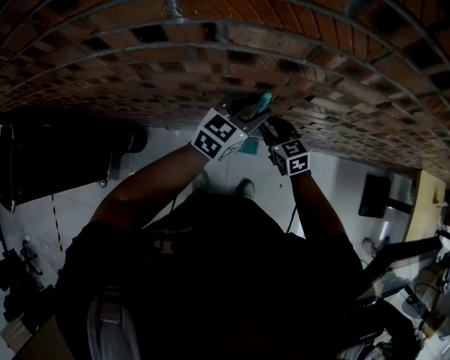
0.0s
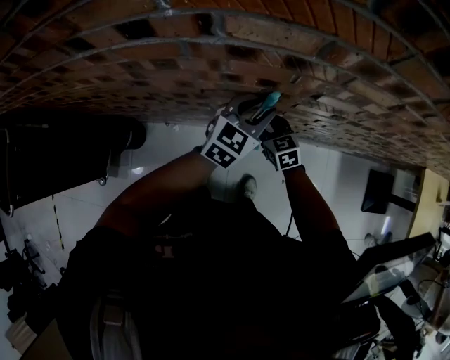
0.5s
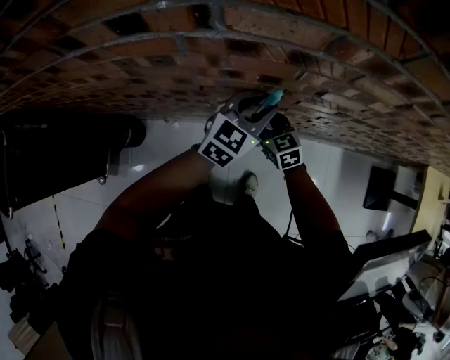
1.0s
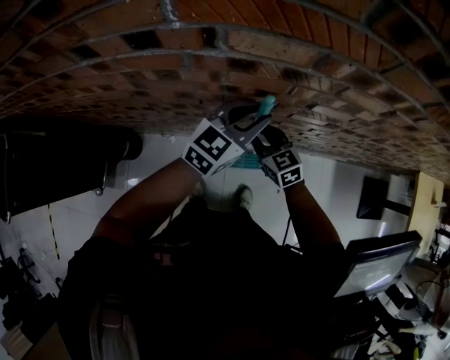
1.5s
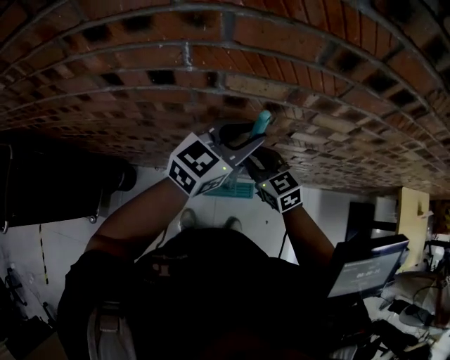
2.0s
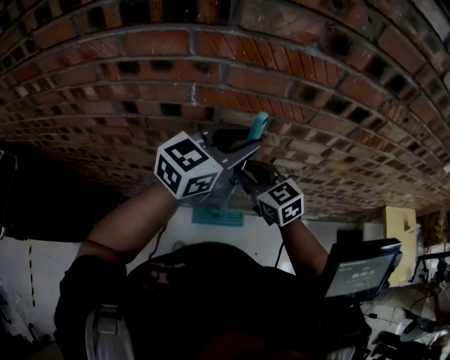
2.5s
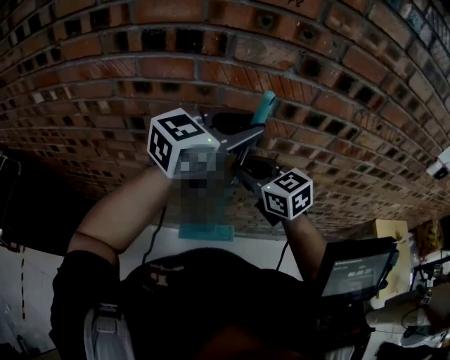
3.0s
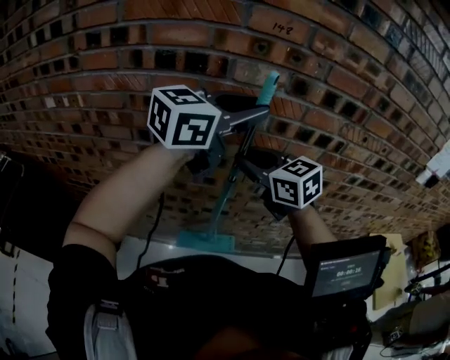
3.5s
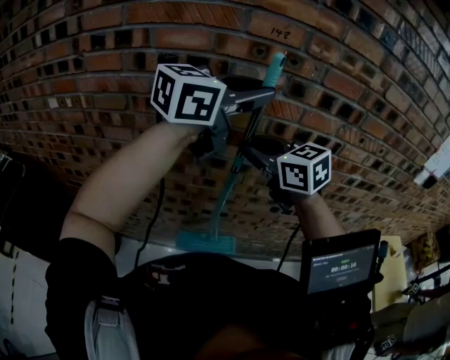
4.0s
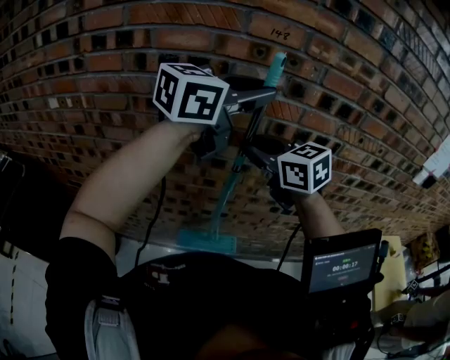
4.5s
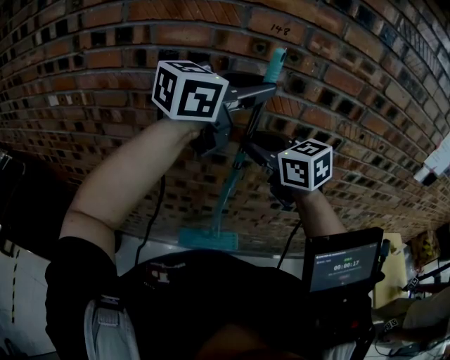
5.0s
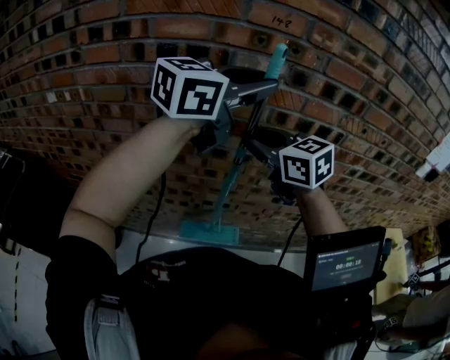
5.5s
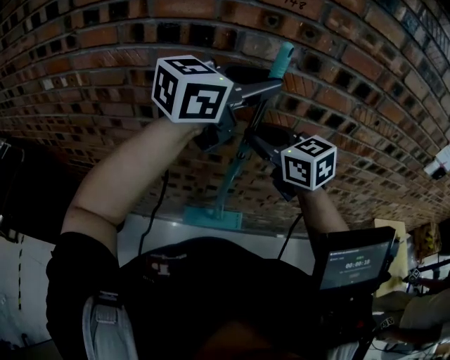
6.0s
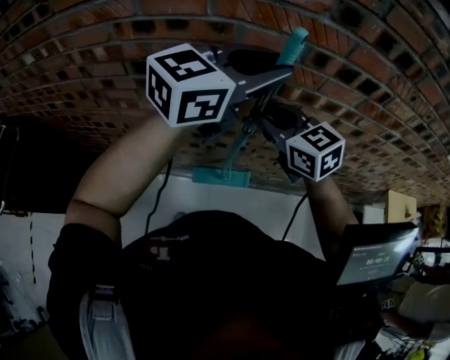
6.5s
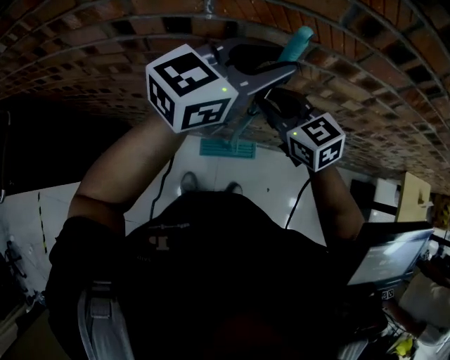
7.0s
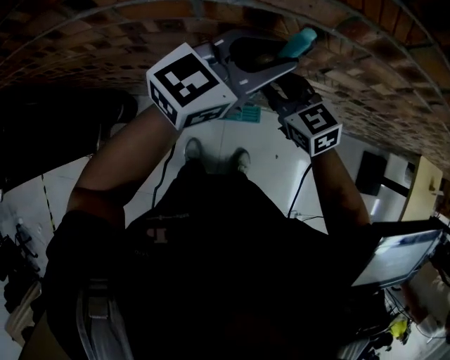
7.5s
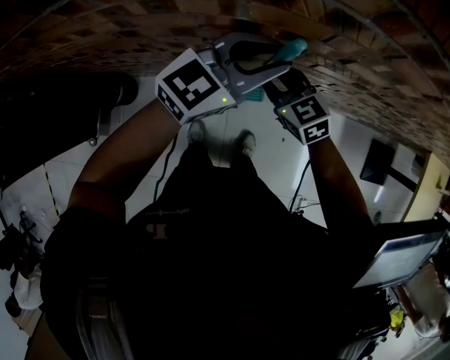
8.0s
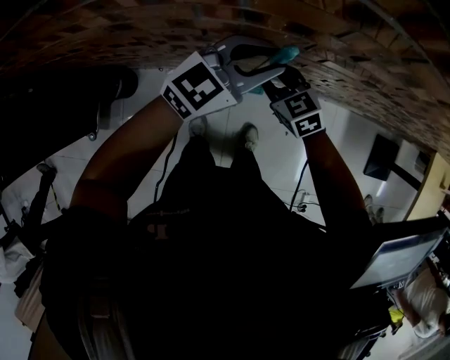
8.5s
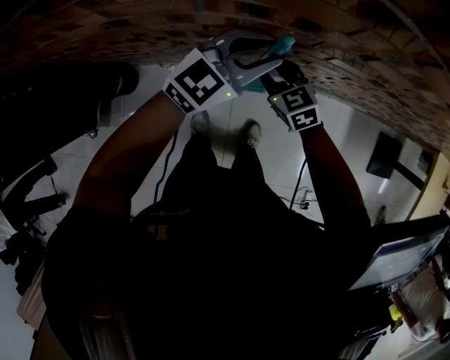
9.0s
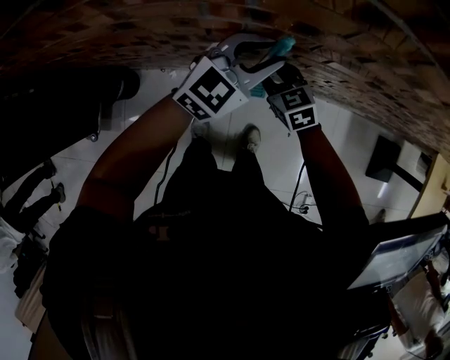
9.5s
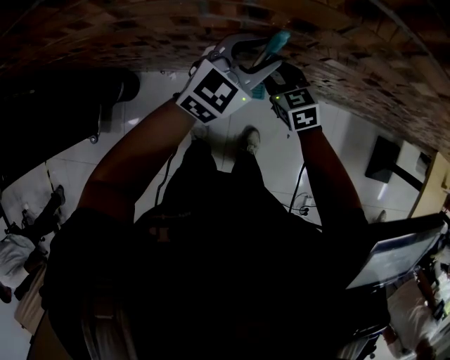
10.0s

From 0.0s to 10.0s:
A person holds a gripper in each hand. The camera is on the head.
From 0.0s to 2.0s: The two grippers go approximately 15 cm upward.
From 2.0s to 4.0s: Both grippers move upward, some 35 cm.
From 4.0s to 6.0s: There are only small adjustments of the grippers.
From 6.0s to 8.0s: The grippers both shift downward by roughly 40 cm.
From 8.0s to 10.0s: The grippers both shift downward by approximately 10 cm.

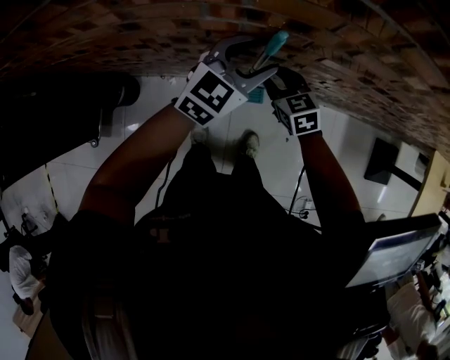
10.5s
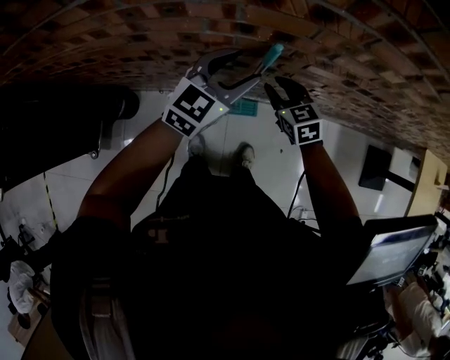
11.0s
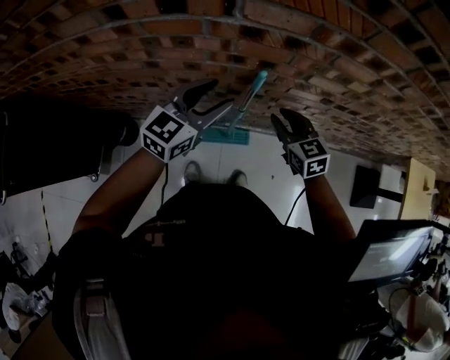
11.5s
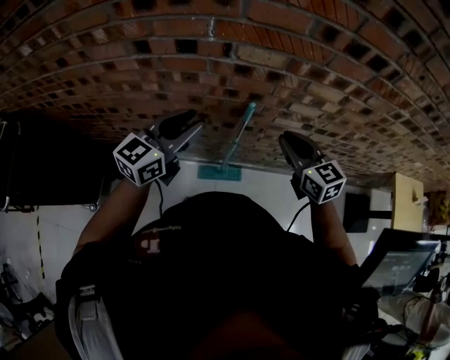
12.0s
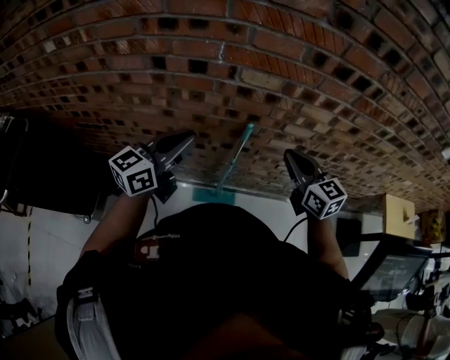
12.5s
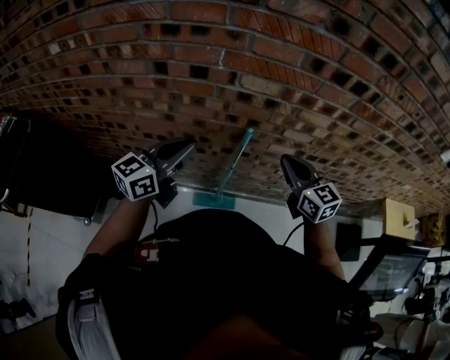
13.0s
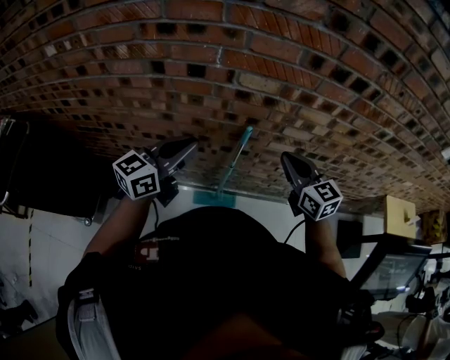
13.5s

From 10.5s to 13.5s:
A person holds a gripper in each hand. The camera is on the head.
From 10.5s to 12.0s: The left gripper shifts about 25 cm upward, to the left and backward, swivels about 20 degrees, and closes its fingers; the right gripper moves upward, about 25 cm.
From 12.0s to 13.5s: The left gripper closes up.

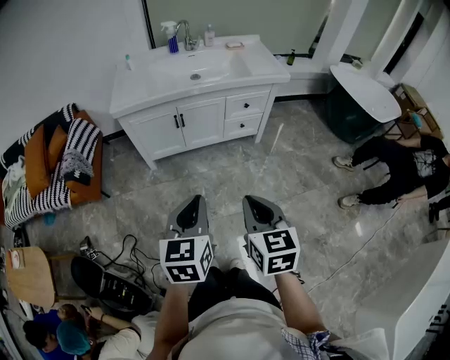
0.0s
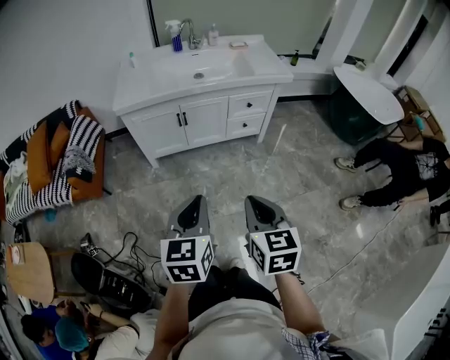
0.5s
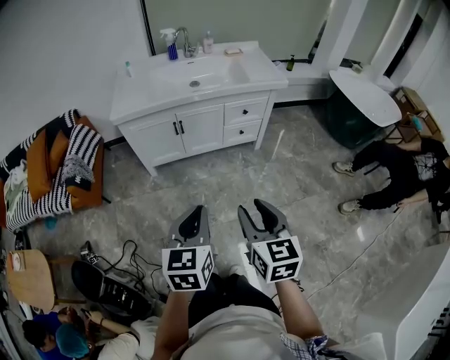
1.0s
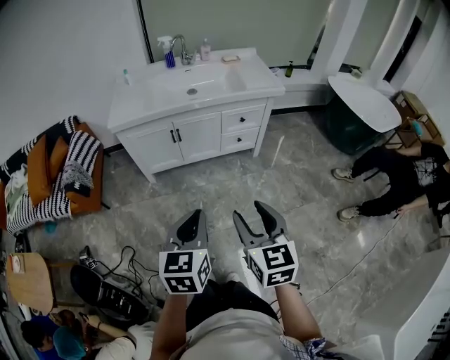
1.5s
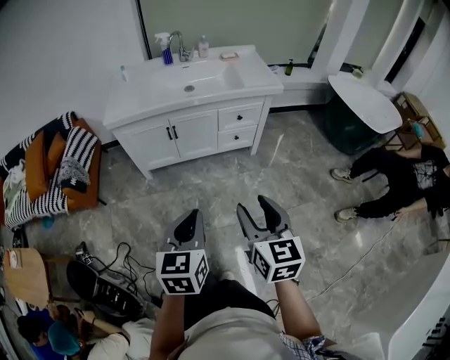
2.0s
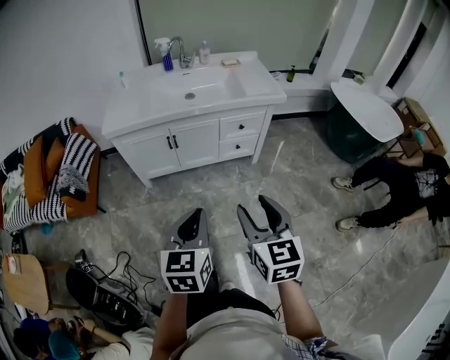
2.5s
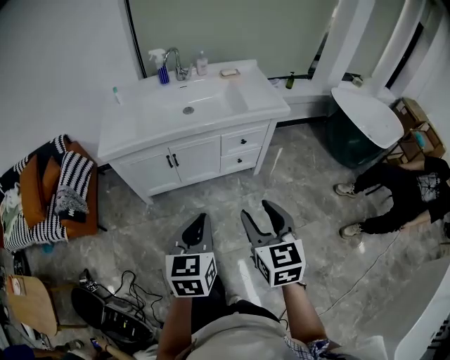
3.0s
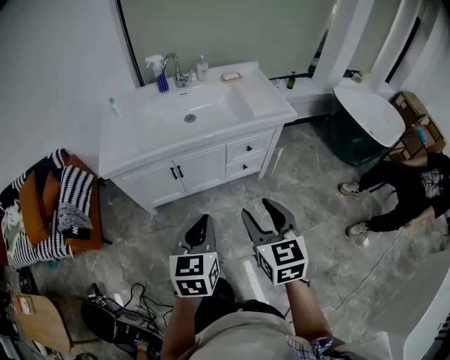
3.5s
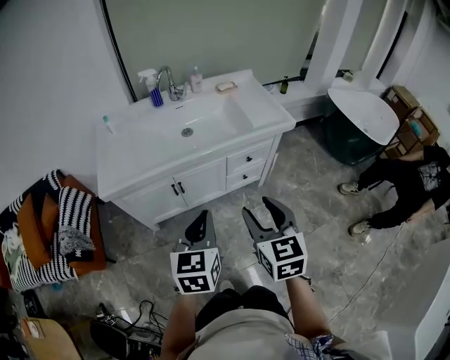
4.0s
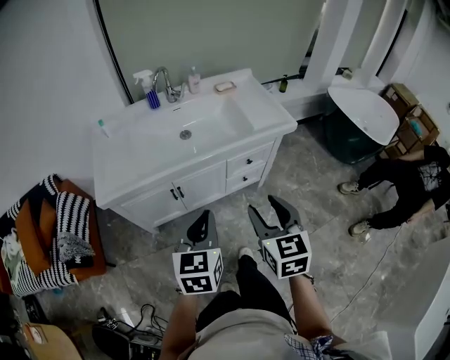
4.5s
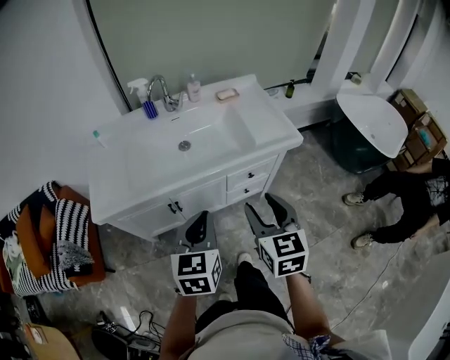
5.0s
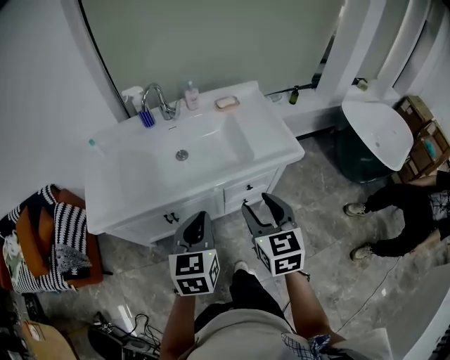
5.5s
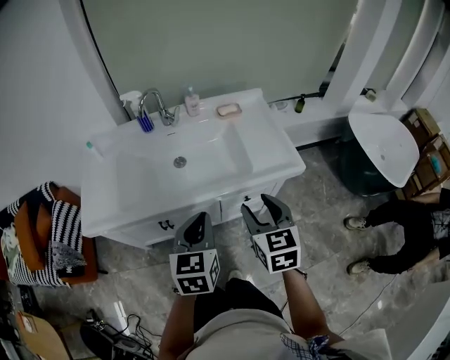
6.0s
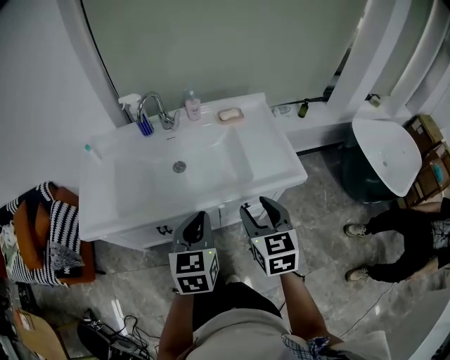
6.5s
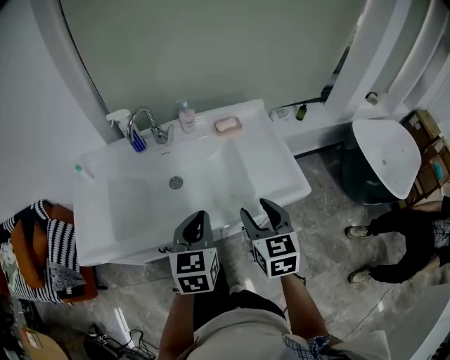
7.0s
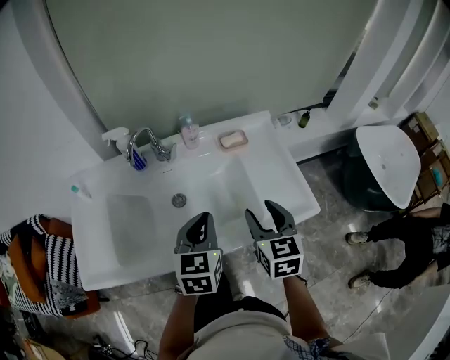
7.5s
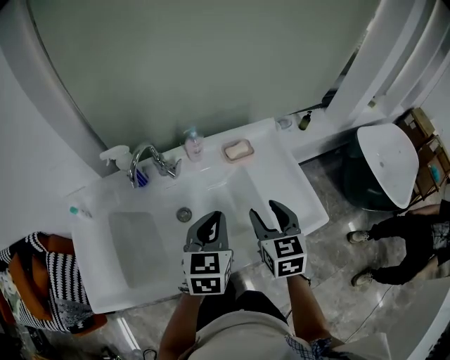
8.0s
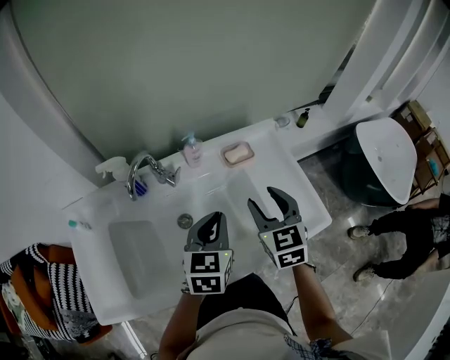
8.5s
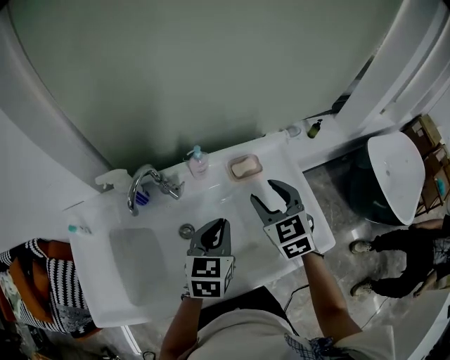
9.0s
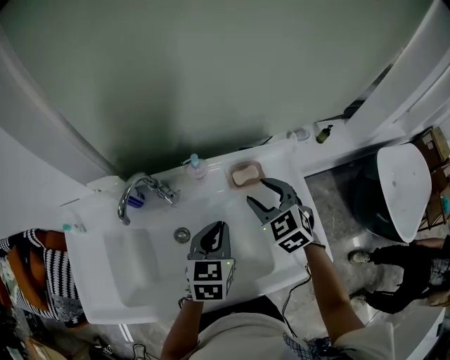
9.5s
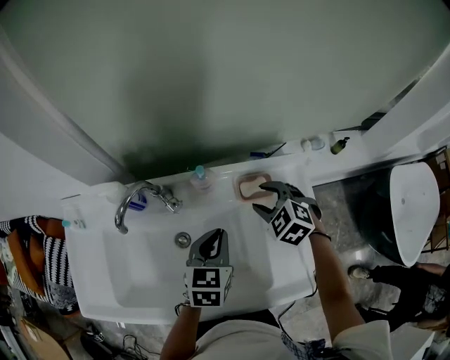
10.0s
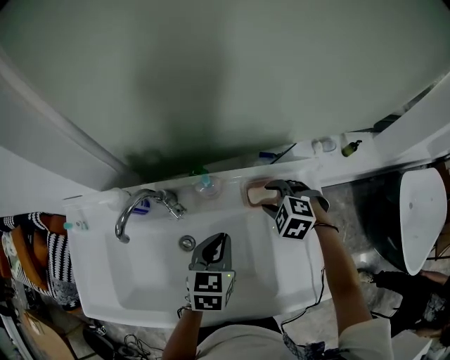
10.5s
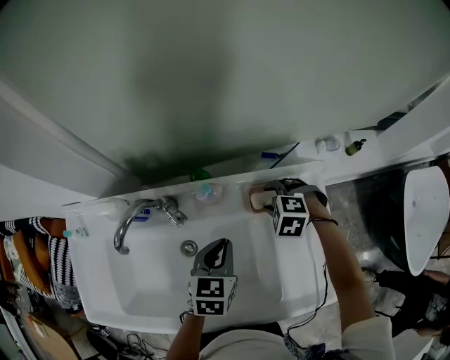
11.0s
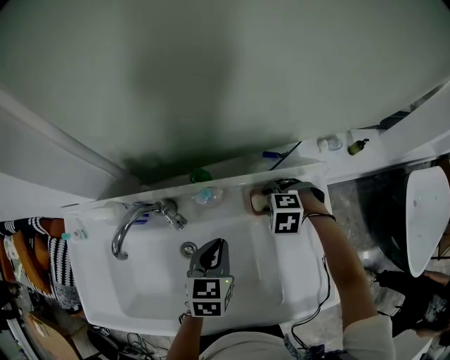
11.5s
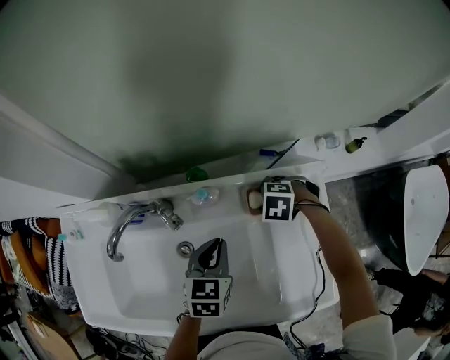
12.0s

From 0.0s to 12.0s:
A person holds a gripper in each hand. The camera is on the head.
From 0.0s to 2.0s: Both grippers move to the right, roughly 5 cm. The right gripper opens its fingers.
From 2.0s to 4.0s: Both grippers move forward, some 30 cm.
From 4.0s to 6.0s: The grippers both shift forward by about 25 cm.
From 6.0s to 8.0s: The grippers both shift forward by roughly 25 cm.
From 8.0s to 10.0s: The right gripper is displaced forward by some 20 cm, and changes its angle by approximately 60 degrees. The left gripper is displaced forward and downward by roughly 15 cm.
From 10.0s to 12.0s: The right gripper travels downward by some 10 cm, and changes its angle by roughly 40 degrees. The left gripper ends up roughly 5 cm from where it was.

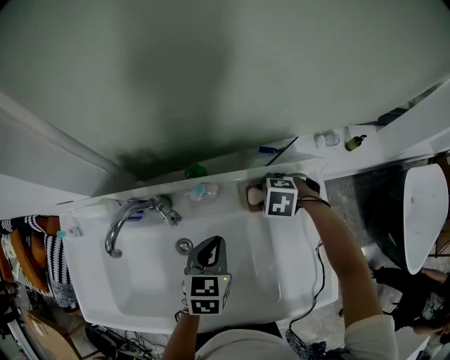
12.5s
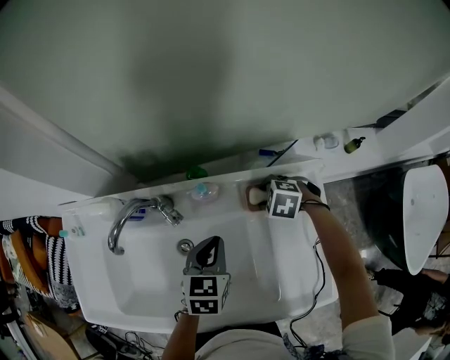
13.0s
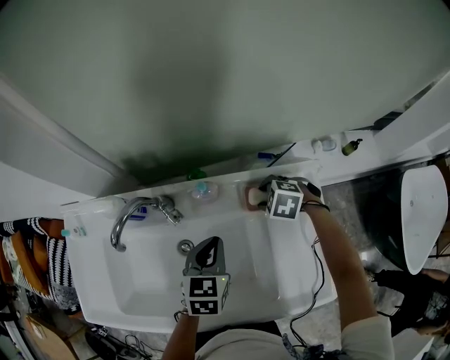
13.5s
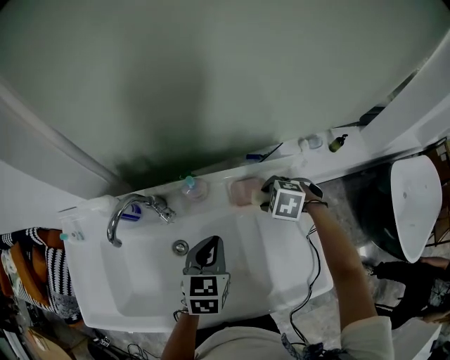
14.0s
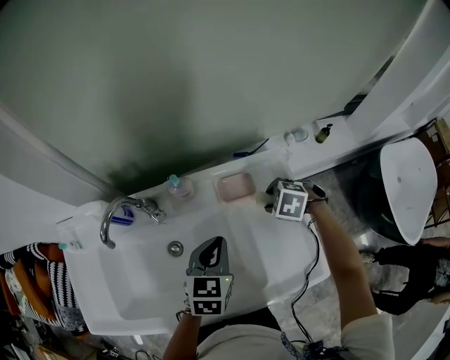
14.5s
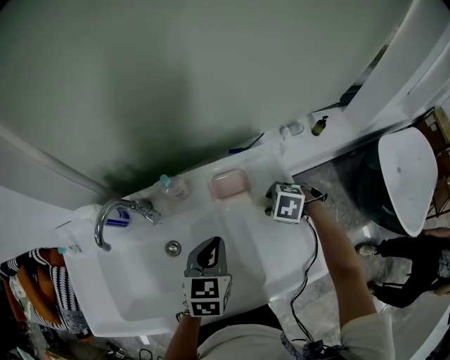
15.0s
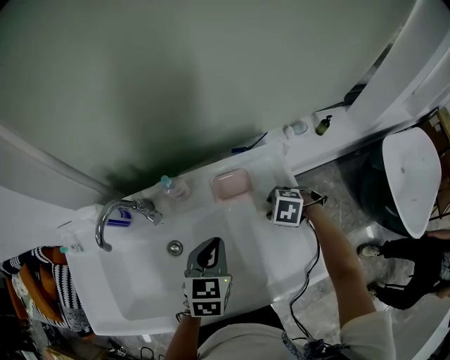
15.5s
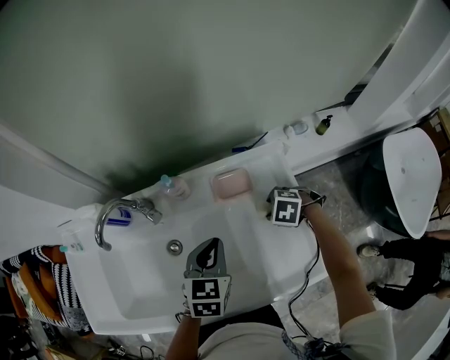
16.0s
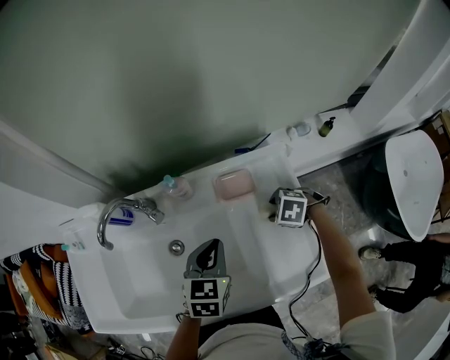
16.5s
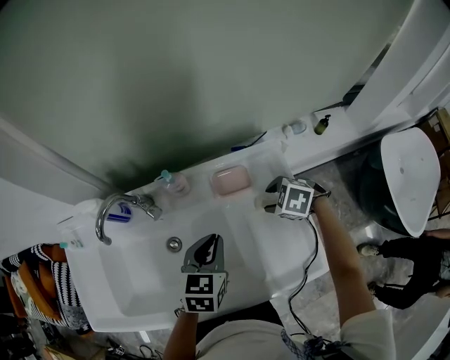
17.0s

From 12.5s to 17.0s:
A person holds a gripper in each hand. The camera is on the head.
From 12.5s to 14.5s: The right gripper moves approximately 15 cm. Meanwhile the left gripper changes place by approximately 10 cm.
